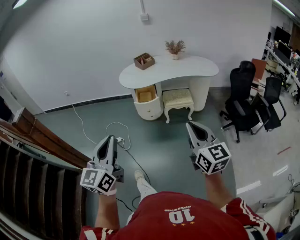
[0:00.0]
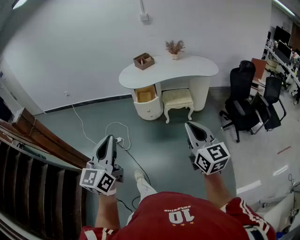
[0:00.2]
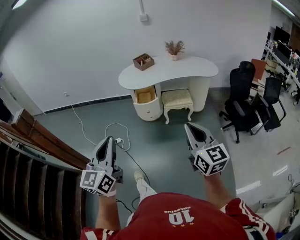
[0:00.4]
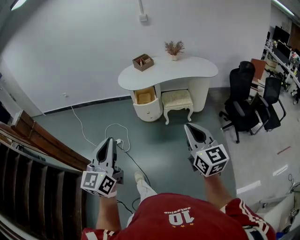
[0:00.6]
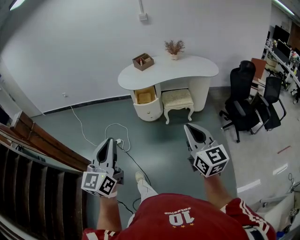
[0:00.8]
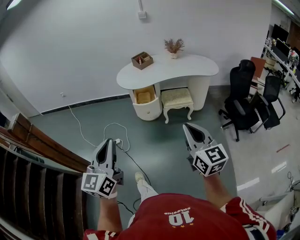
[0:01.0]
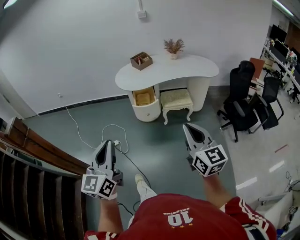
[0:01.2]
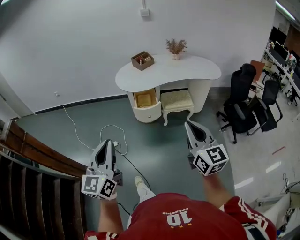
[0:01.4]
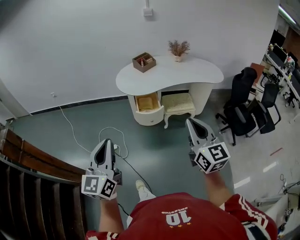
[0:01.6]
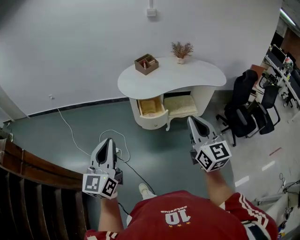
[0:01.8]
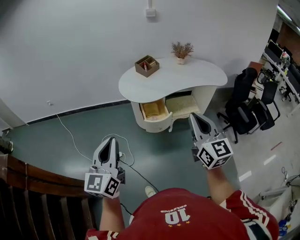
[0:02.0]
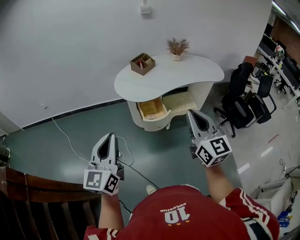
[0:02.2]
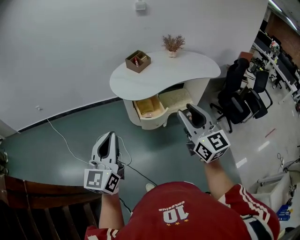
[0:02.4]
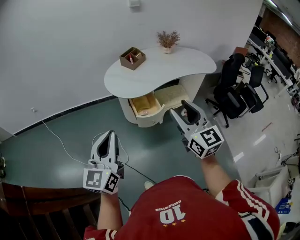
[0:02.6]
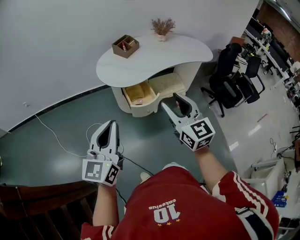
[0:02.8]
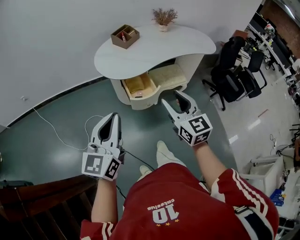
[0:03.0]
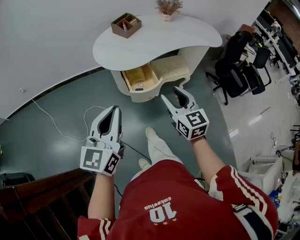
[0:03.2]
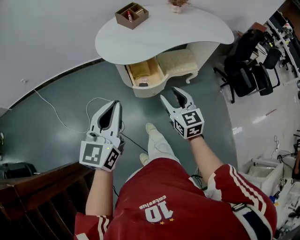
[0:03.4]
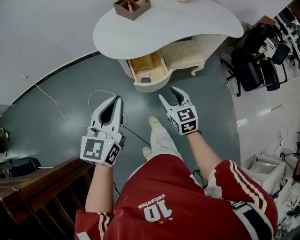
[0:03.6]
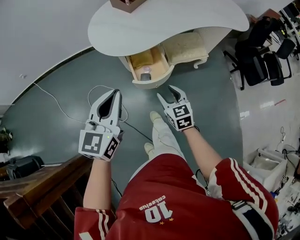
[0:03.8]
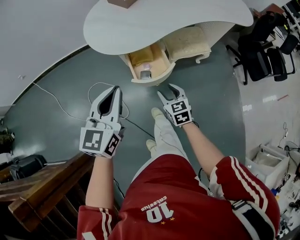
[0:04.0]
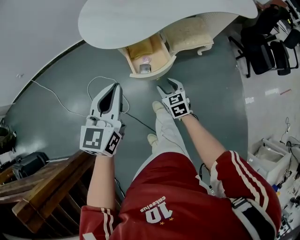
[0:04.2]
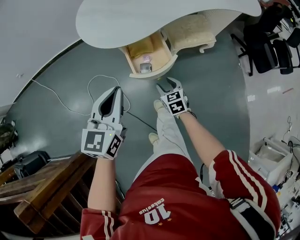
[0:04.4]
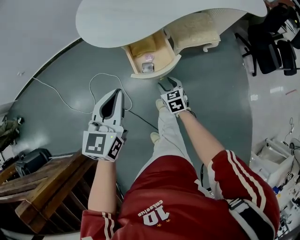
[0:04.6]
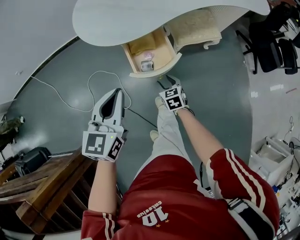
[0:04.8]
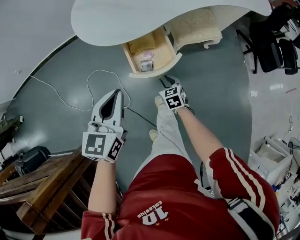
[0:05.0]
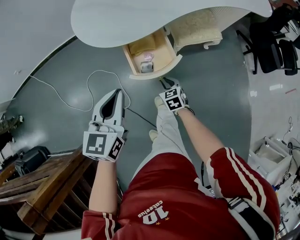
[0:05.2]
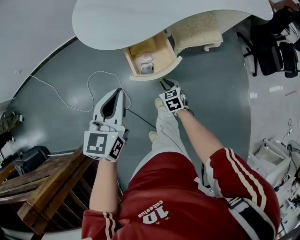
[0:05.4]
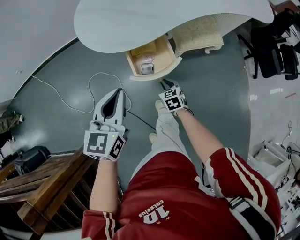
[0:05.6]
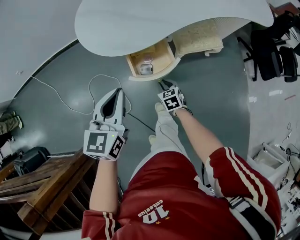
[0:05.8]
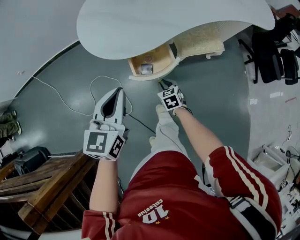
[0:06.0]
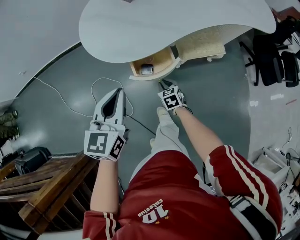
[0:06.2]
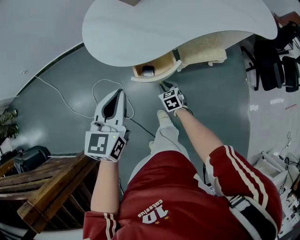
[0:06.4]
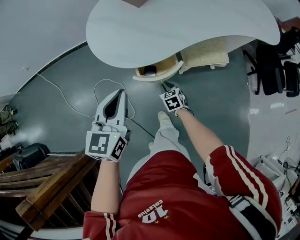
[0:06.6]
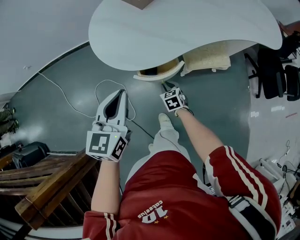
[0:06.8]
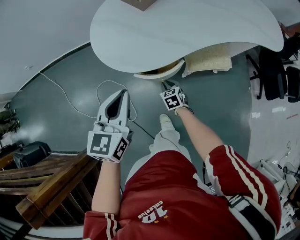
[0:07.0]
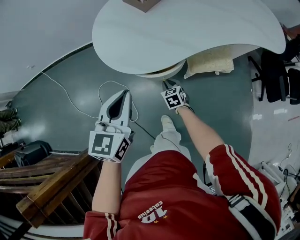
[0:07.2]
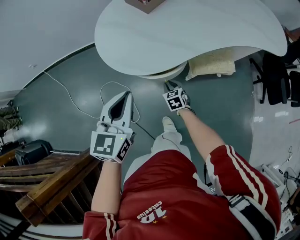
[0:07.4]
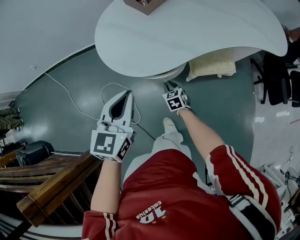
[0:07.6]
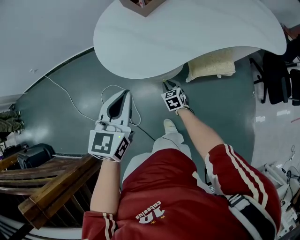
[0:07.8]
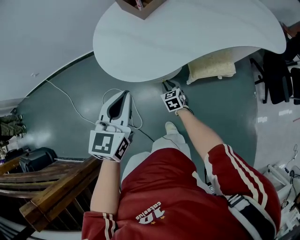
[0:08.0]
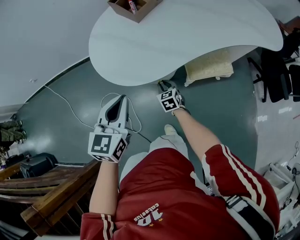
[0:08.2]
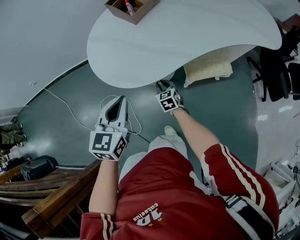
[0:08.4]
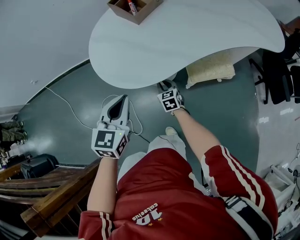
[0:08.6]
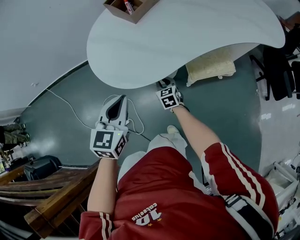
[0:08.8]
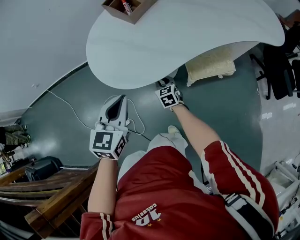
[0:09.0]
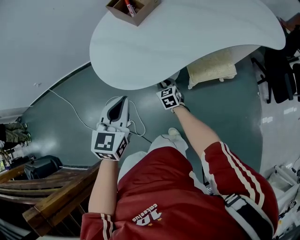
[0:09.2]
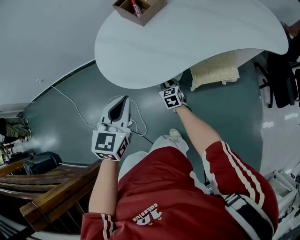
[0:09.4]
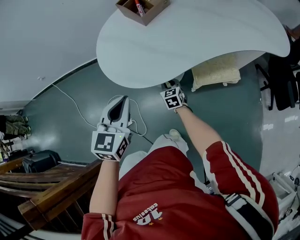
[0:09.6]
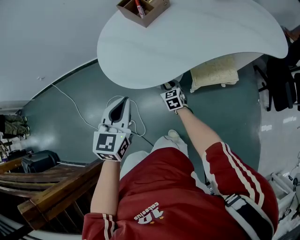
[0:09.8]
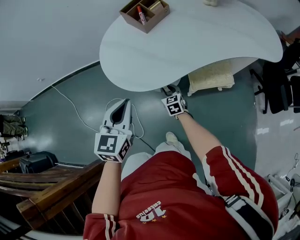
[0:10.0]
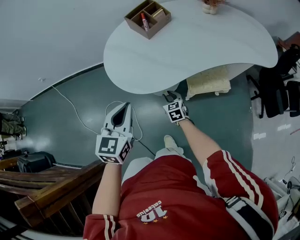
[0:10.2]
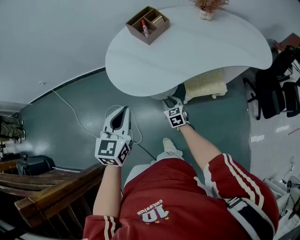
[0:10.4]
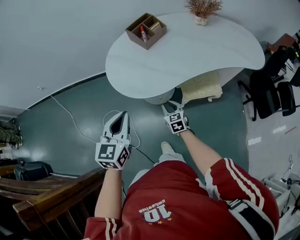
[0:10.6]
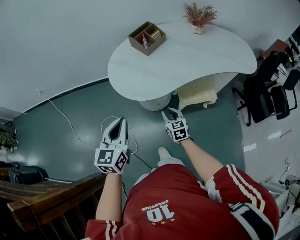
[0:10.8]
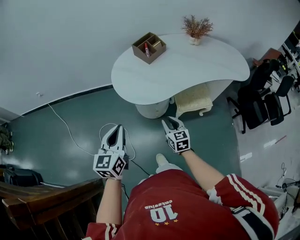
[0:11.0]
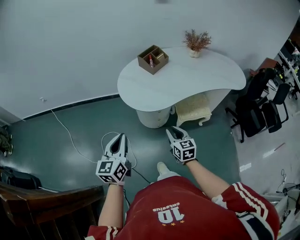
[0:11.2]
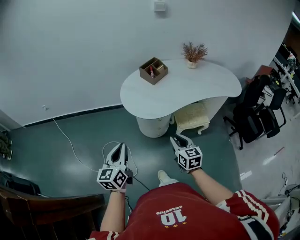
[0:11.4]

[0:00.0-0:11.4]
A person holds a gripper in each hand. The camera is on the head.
0:00.0 to 0:01.4: The grippers both shift forward and to the left by about 15 cm.
0:01.4 to 0:02.8: The grippers both shift forward and to the left by about 30 cm. The right gripper opens its fingers.
0:02.8 to 0:04.2: The right gripper moves downward and forward, approximately 50 cm, and points its fingers roughly 40 degrees further downward, while the left gripper moves forward and downward, about 30 cm, and swivels roughly 20 degrees.
0:04.2 to 0:05.6: The right gripper heads downward, covering approximately 10 cm, and closes, while the left gripper heads downward, covering approximately 5 cm.
0:05.6 to 0:07.2: The right gripper is displaced forward by some 15 cm; the left gripper is displaced forward by approximately 10 cm.
0:07.2 to 0:08.6: The left gripper travels downward by roughly 5 cm. The right gripper heads forward, covering roughly 5 cm.
0:08.6 to 0:10.0: The left gripper goes some 5 cm upward.
0:10.0 to 0:11.4: The left gripper shifts about 25 cm backward, to the left and upward, and turns by some 30 degrees; the right gripper is displaced upward and backward by approximately 40 cm.

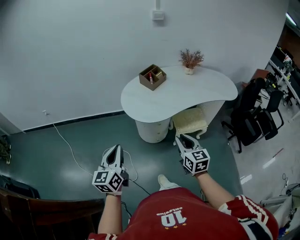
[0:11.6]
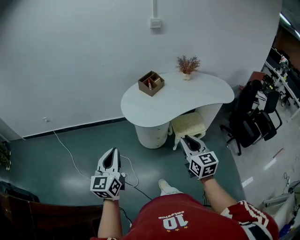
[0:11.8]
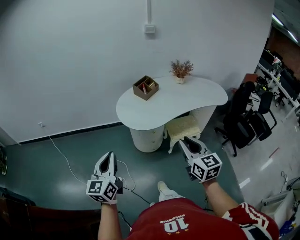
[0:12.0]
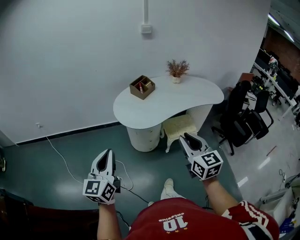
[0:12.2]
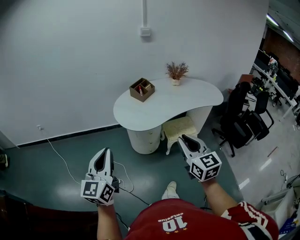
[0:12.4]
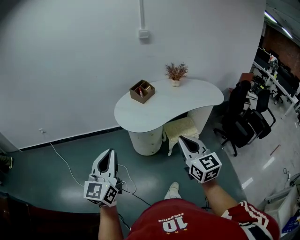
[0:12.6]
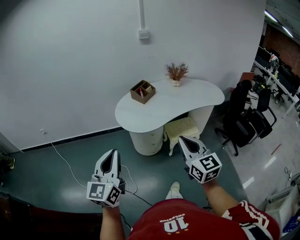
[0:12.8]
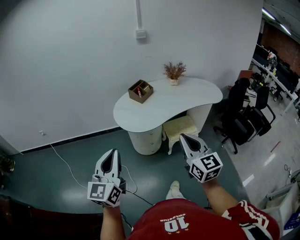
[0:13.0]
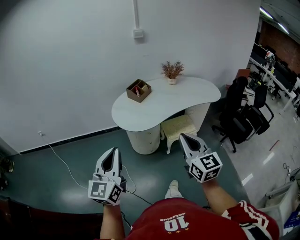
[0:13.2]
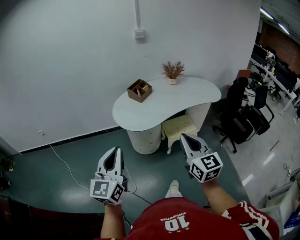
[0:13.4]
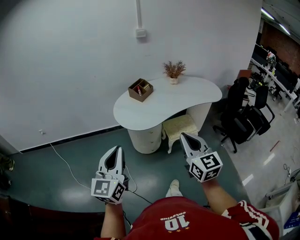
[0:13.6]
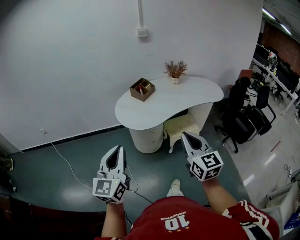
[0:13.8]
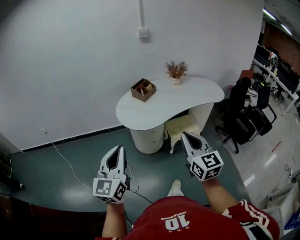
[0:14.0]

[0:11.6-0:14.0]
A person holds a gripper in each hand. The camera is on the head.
0:11.6 to 0:12.8: Both grippers travel together upward and backward, some 15 cm. The right gripper closes.
0:12.8 to 0:14.0: There are only small adjustments of the grippers.

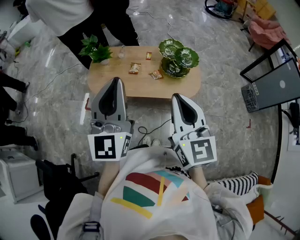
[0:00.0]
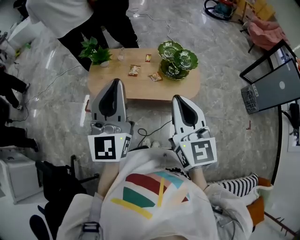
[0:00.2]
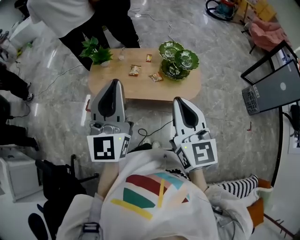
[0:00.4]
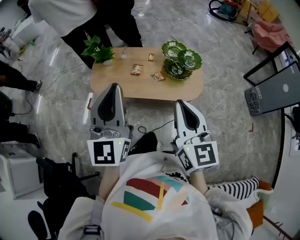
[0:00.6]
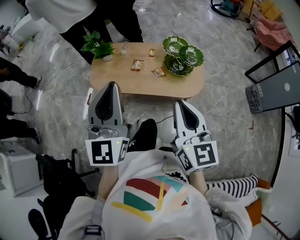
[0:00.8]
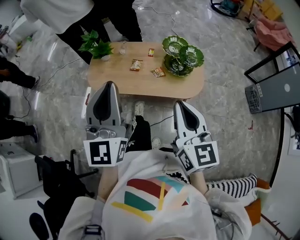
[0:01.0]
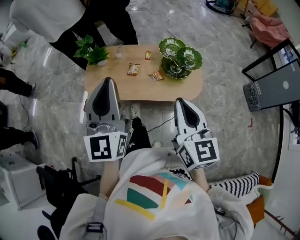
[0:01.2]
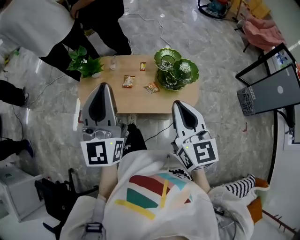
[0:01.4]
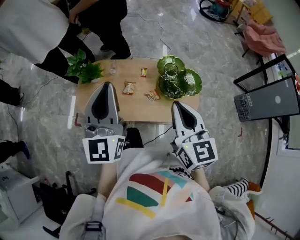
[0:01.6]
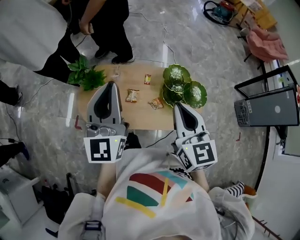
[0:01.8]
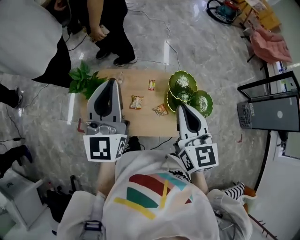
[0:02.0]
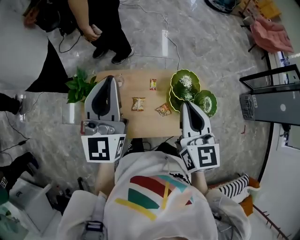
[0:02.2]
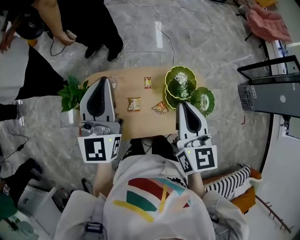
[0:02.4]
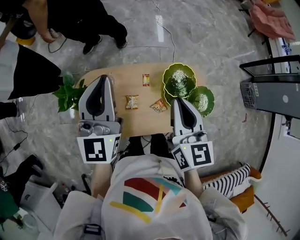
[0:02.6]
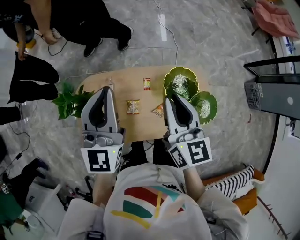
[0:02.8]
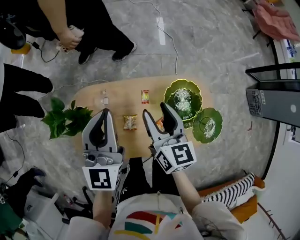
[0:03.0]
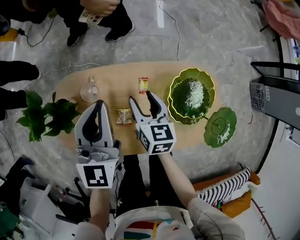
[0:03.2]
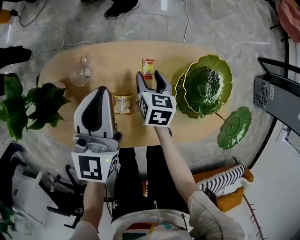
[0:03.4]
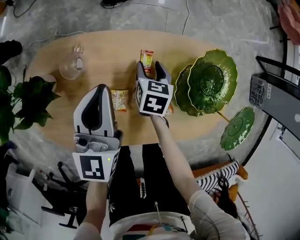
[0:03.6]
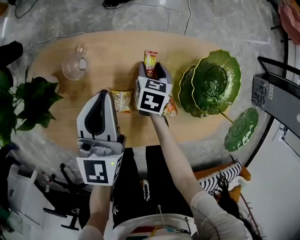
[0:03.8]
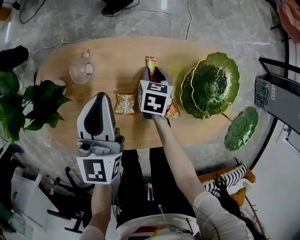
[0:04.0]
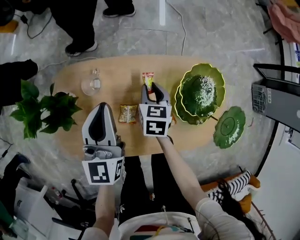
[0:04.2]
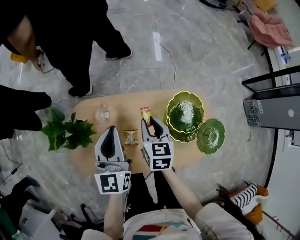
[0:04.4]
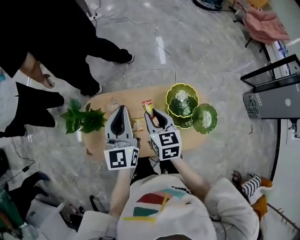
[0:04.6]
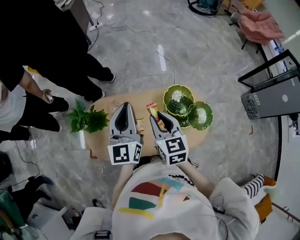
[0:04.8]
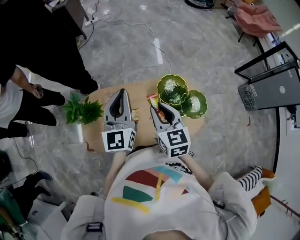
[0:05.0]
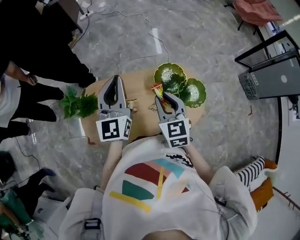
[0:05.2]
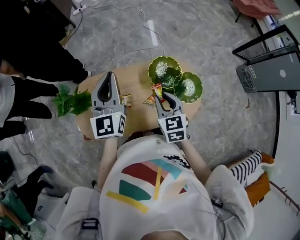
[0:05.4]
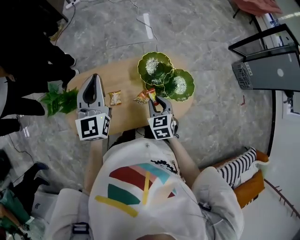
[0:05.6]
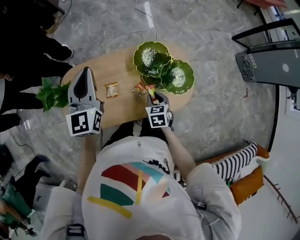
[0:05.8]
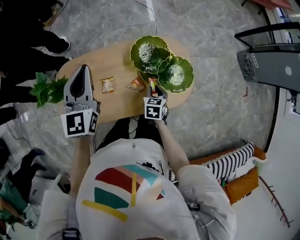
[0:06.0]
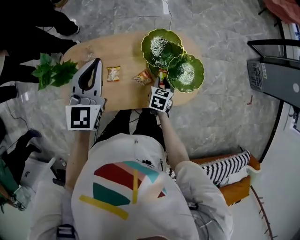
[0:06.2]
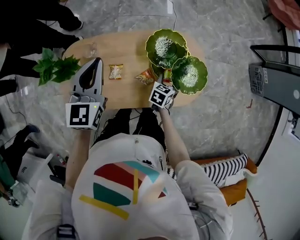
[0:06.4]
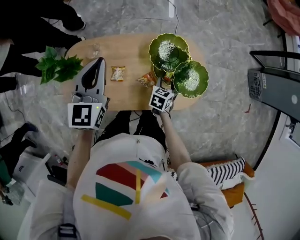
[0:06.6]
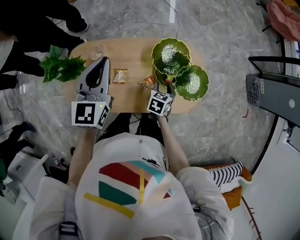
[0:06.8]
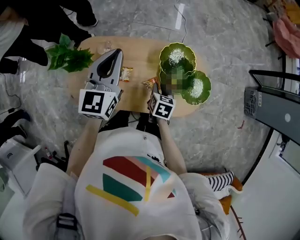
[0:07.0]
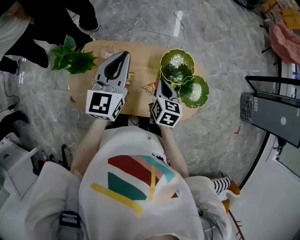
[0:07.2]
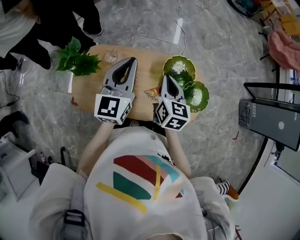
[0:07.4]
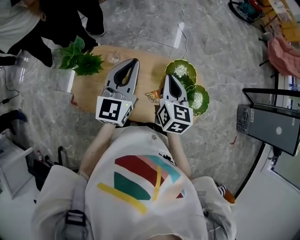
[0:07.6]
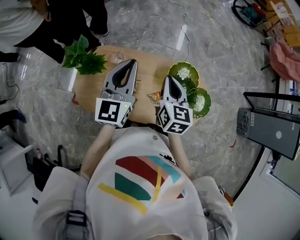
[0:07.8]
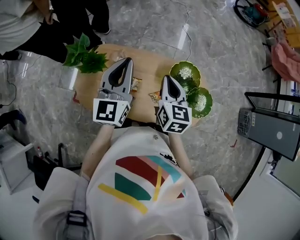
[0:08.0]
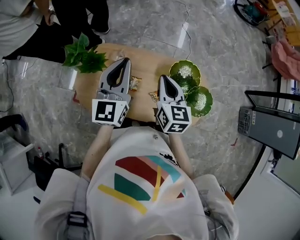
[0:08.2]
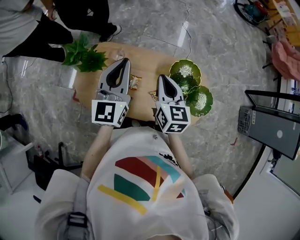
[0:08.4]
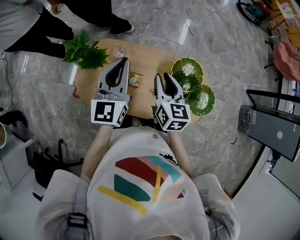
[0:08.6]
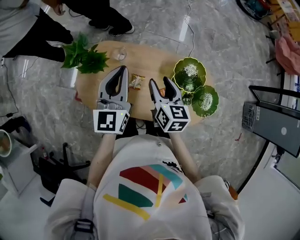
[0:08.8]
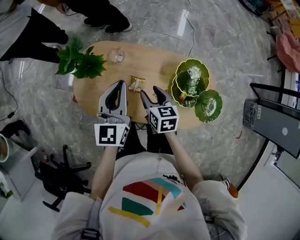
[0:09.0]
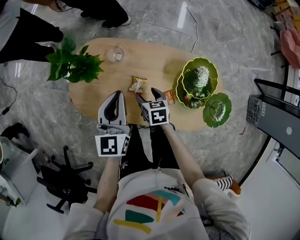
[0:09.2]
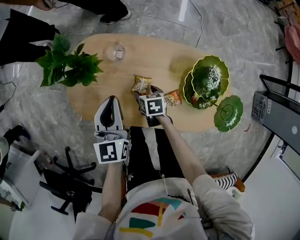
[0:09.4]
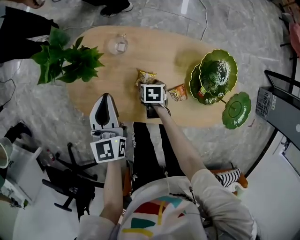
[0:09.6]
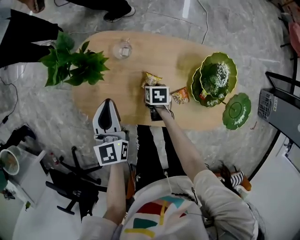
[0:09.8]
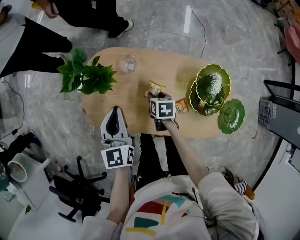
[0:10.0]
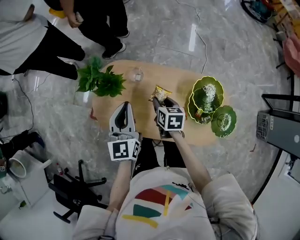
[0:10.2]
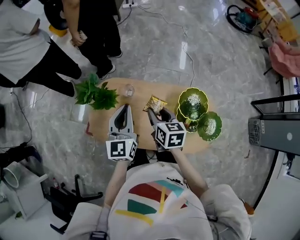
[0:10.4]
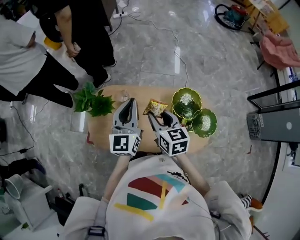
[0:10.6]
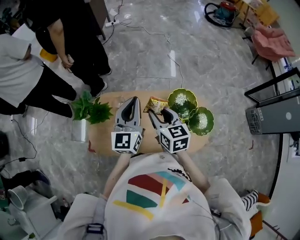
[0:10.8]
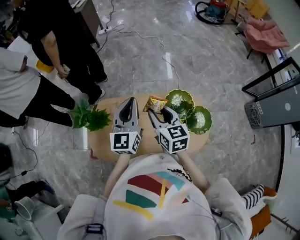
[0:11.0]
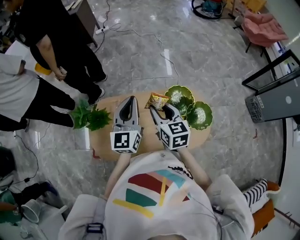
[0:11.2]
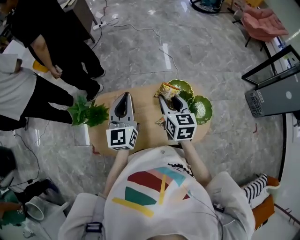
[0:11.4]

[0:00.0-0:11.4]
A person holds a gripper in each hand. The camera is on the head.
0:00.0 to 0:01.4: The right gripper travels forward and downward by some 10 cm. Meanwhile the left gripper heads forward, covering approximately 10 cm.
0:01.4 to 0:02.8: The two grippers go about 35 cm forward.
0:02.8 to 0:04.2: Both grippers travel together downward, roughly 35 cm. The right gripper angles its fingers downward, by about 30 degrees, and opens and closes again.
0:04.2 to 0:05.6: The right gripper travels upward, backward and to the right by approximately 30 cm; the left gripper heads upward and to the right, covering some 25 cm.
0:05.6 to 0:07.2: The right gripper reaches roughly 15 cm downward, then returns, swivels some 20 degrees, and opens, then closes again.
0:07.2 to 0:08.6: The right gripper heads upward and to the left, covering about 10 cm. The left gripper heads to the left, covering roughly 5 cm.
0:08.6 to 0:10.0: The left gripper travels downward and to the left by some 20 cm, and swivels about 20 degrees; the right gripper goes approximately 30 cm downward, angles its fingers downward, by some 40 degrees, and opens, then closes once more.
0:10.0 to 0:11.4: The left gripper heads upward, covering about 20 cm, and turns by roughly 30 degrees. The right gripper travels upward by about 35 cm, and points its fingers roughly 40 degrees further upward.
